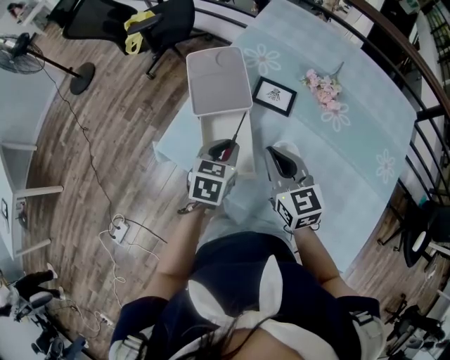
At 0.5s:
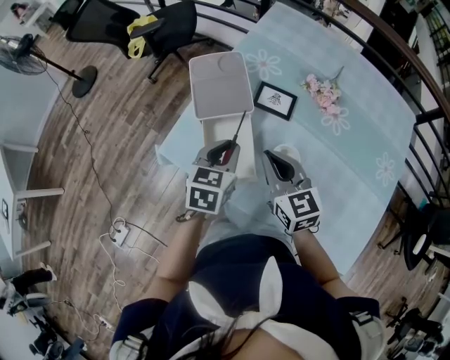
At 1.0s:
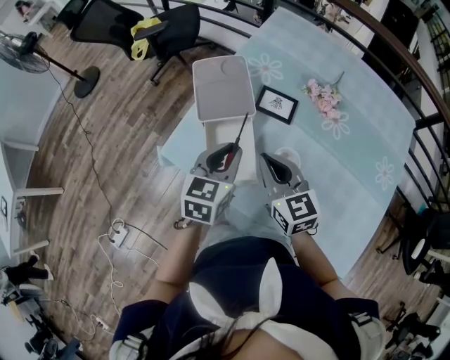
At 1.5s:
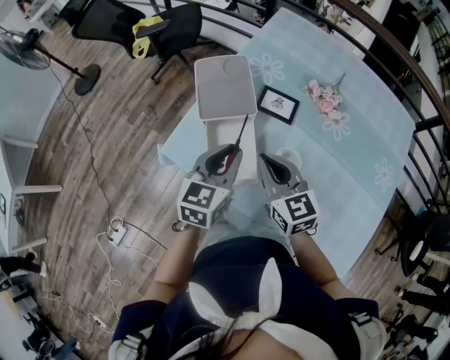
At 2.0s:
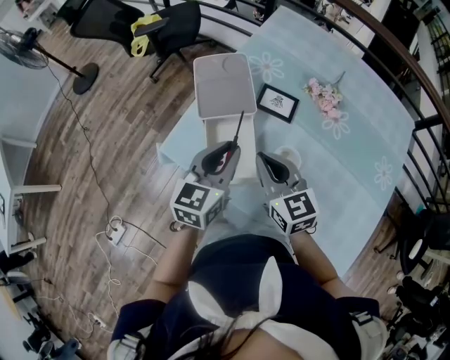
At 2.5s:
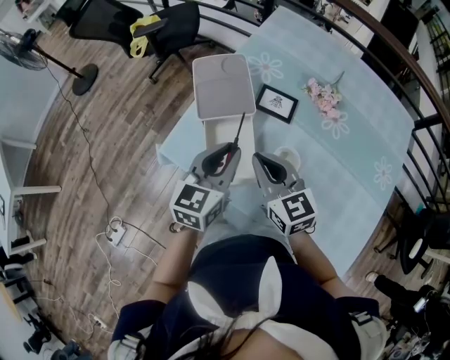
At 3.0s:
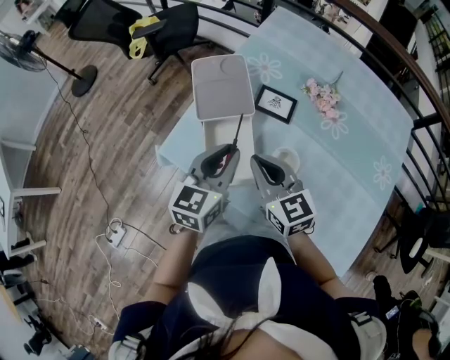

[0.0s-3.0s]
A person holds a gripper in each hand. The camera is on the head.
0.0s to 1.5s: The left gripper goes about 10 cm upward.
1.5s to 3.0s: The grippers stay close to where they were, moving slightly.

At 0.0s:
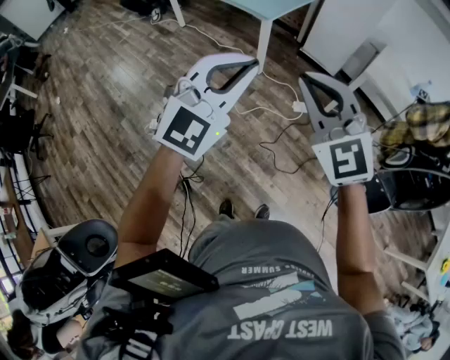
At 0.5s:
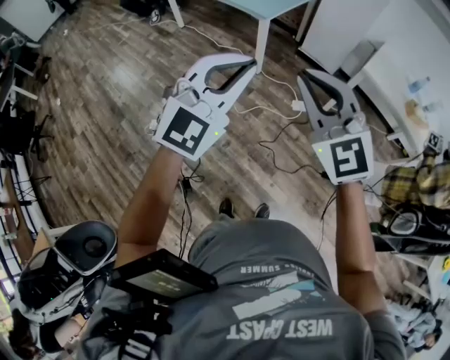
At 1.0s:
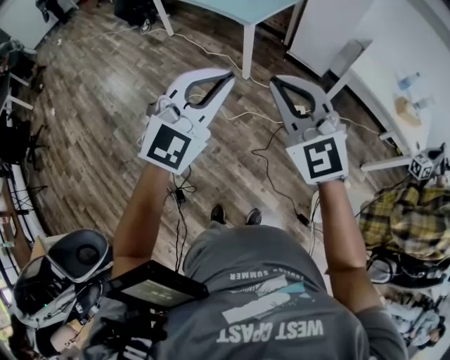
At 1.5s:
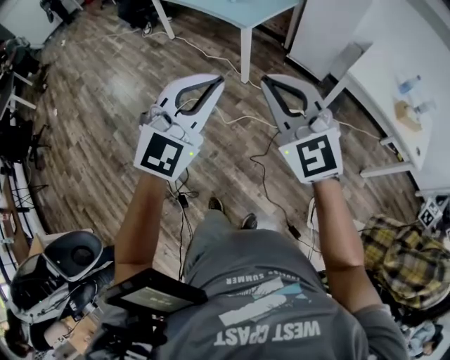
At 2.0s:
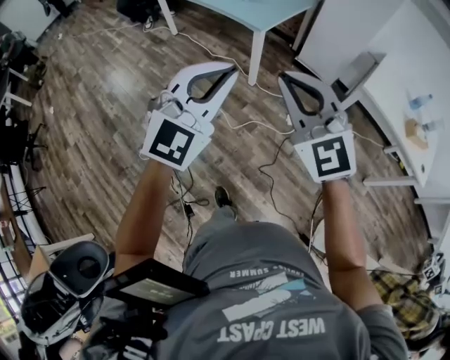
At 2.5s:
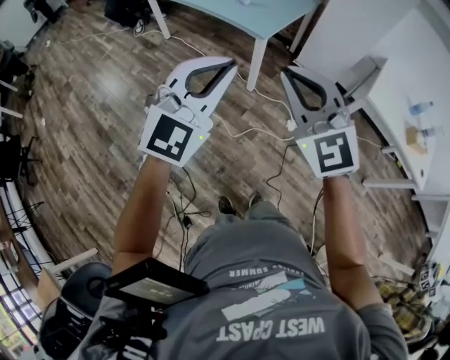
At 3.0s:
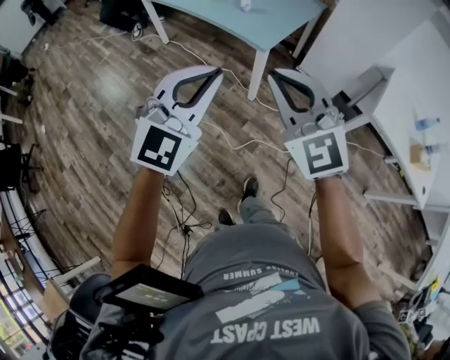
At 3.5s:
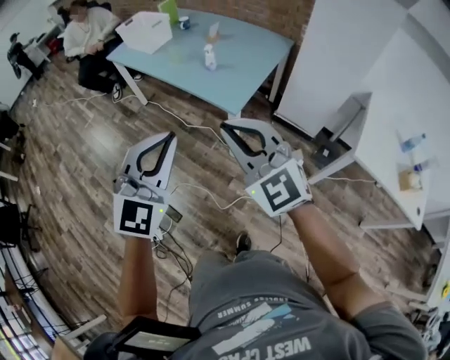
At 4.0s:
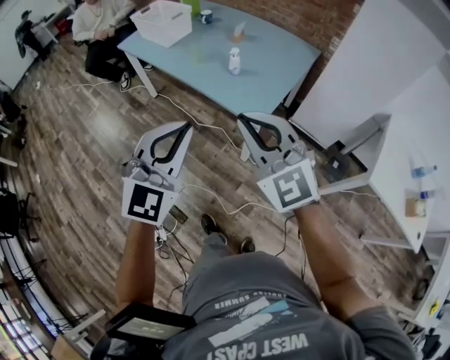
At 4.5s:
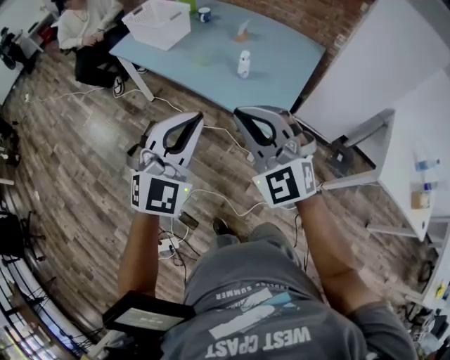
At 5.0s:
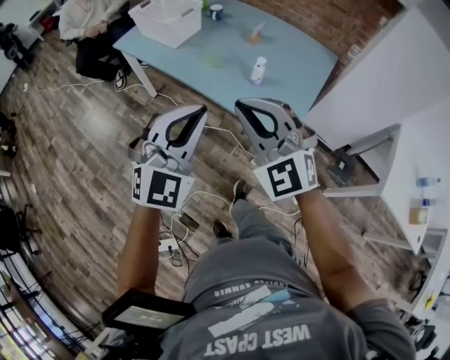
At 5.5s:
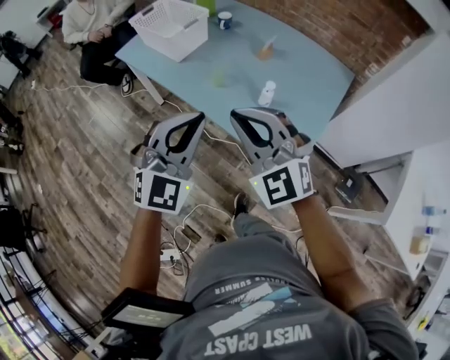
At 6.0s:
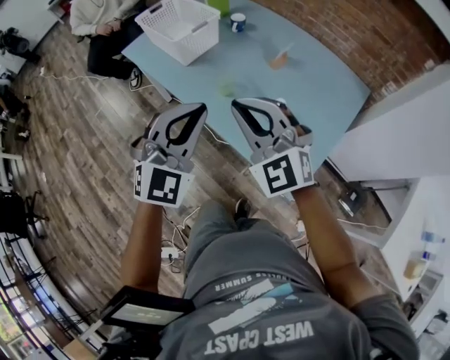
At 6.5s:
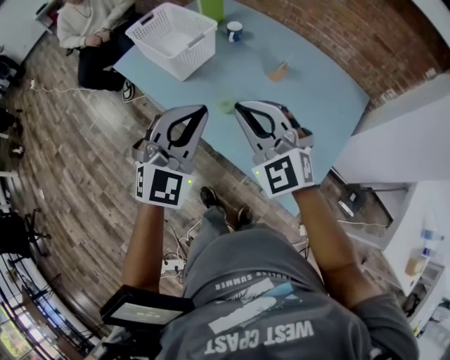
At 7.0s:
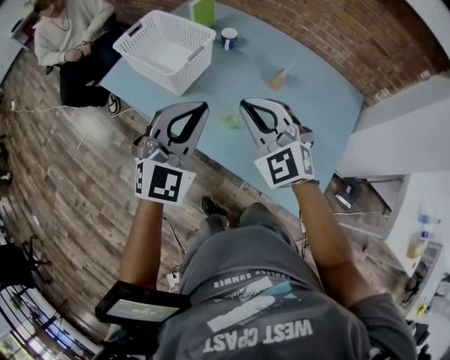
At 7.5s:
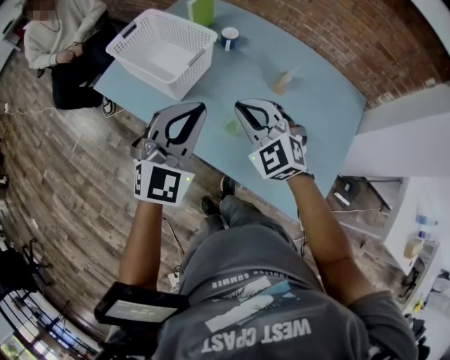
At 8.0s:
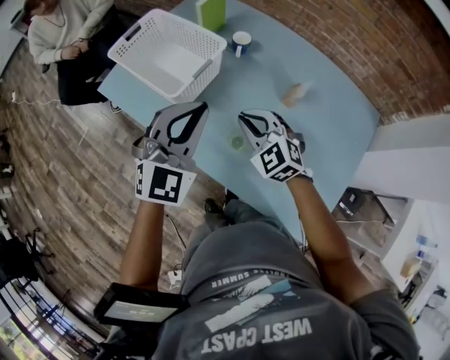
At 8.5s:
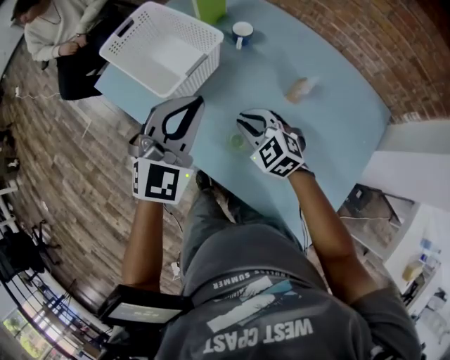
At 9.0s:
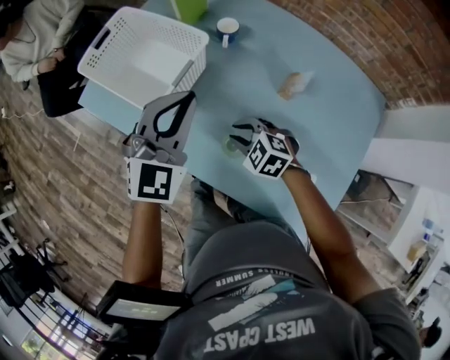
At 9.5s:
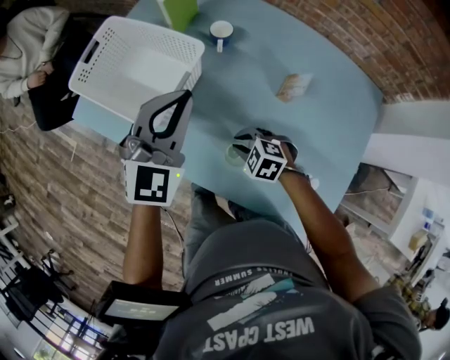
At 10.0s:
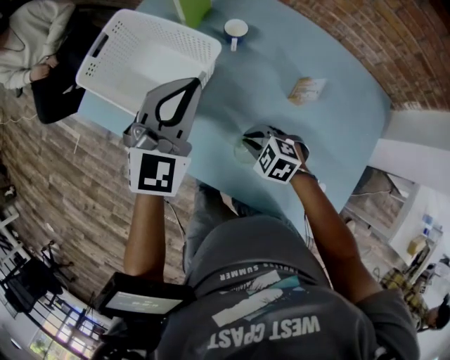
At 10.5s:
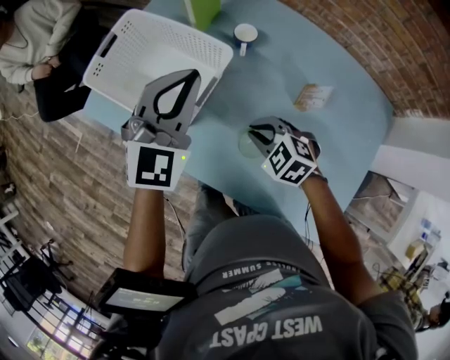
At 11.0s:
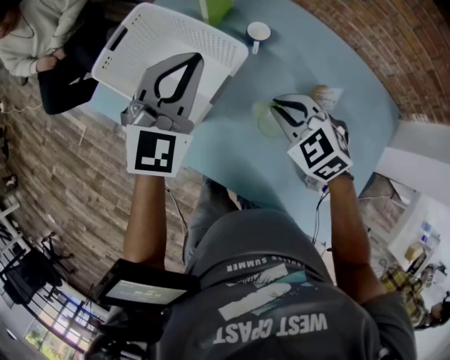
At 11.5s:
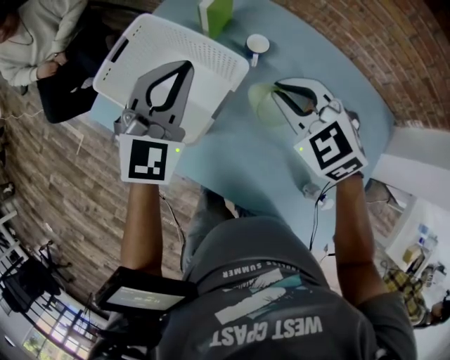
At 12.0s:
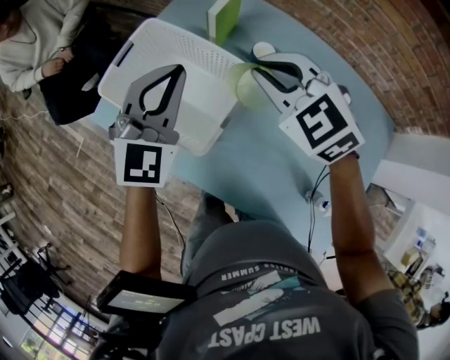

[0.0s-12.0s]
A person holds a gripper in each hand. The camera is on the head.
0.0s to 2.0s: Both grippers move forward, about 10 cm.
2.0s to 4.0s: Both grippers are carried forward, some 50 cm.
4.0s to 6.0s: Both grippers travel together forward, roughly 40 cm.
6.0s to 8.0s: The left gripper goes about 30 cm forward. Meanwhile the right gripper heads forward and downward, covering roughly 35 cm, and swivels approximately 30 degrees.
8.0s to 10.0s: The left gripper shifts approximately 15 cm forward. Meanwhile the right gripper shifts roughly 15 cm downward, and changes its angle by some 30 degrees.
10.0s to 12.0s: The left gripper heads forward and to the left, covering some 15 cm. The right gripper travels upward and forward by some 35 cm, and swivels approximately 30 degrees.

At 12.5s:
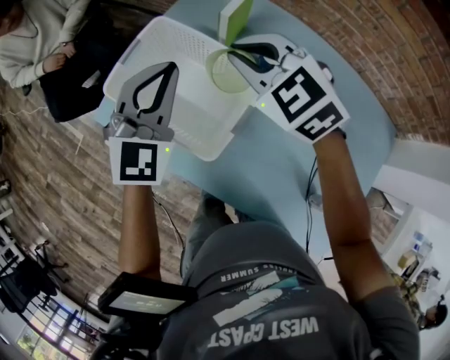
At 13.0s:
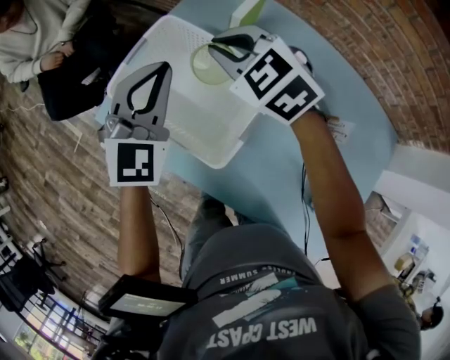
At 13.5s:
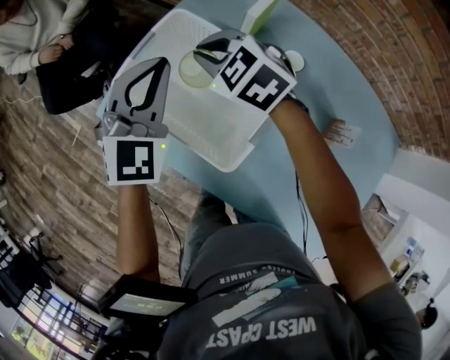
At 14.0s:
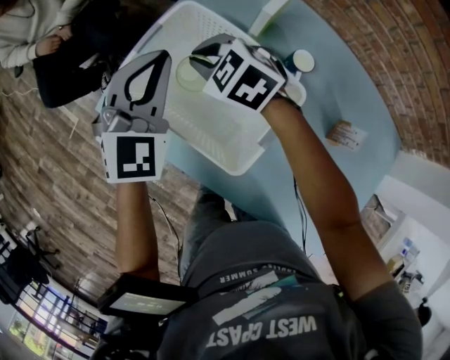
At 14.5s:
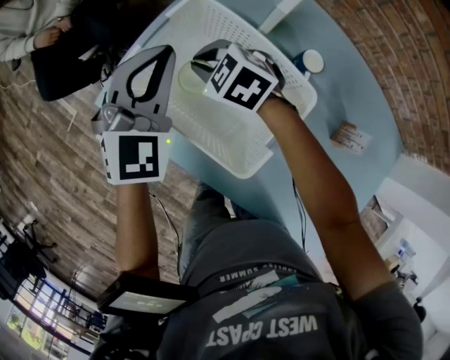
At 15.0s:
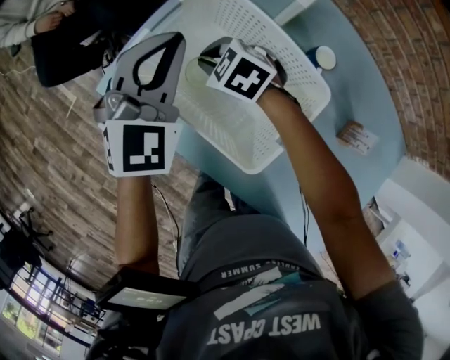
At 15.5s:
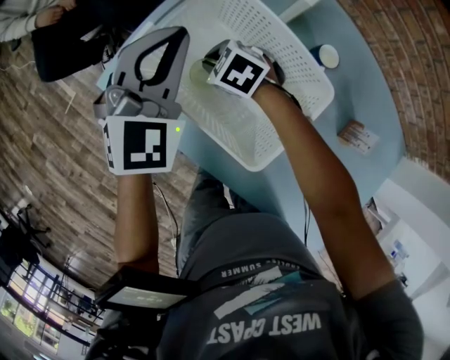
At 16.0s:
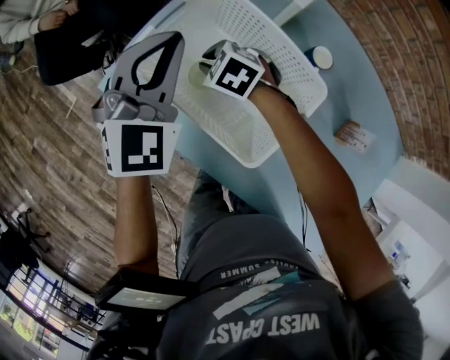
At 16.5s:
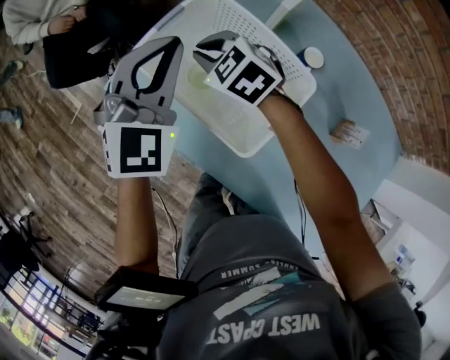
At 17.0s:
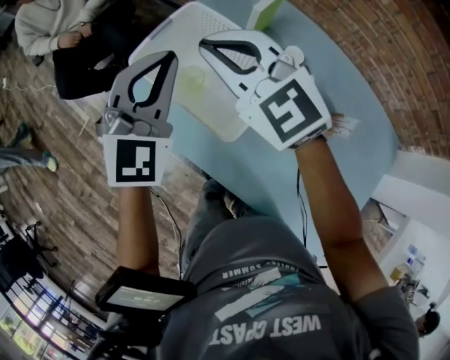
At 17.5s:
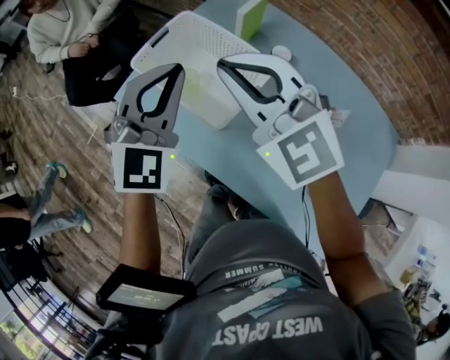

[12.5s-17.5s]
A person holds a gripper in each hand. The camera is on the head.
12.5s to 15.0s: The left gripper shifts some 15 cm forward, to the left and downward, while the right gripper is displaced downward and to the left by about 30 cm, and rotates approximately 30 degrees.
15.0s to 17.5s: The left gripper shifts some 20 cm backward and upward. The right gripper moves upward and backward, some 40 cm, and points its fingers some 40 degrees further upward.

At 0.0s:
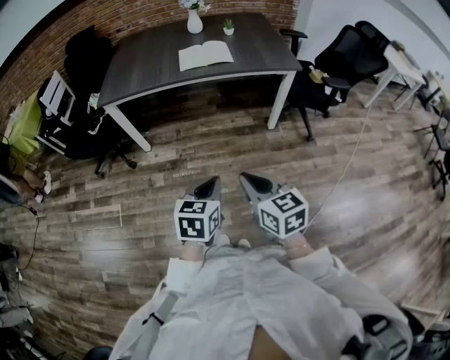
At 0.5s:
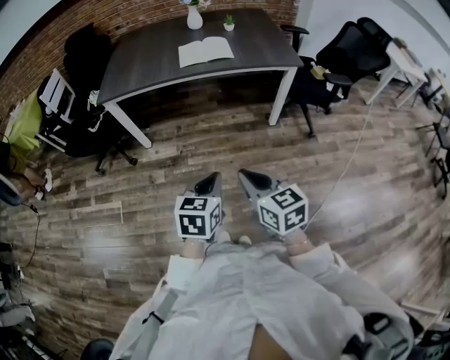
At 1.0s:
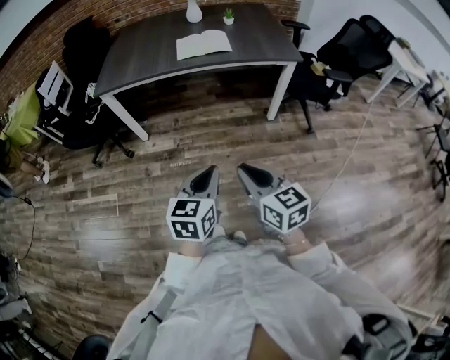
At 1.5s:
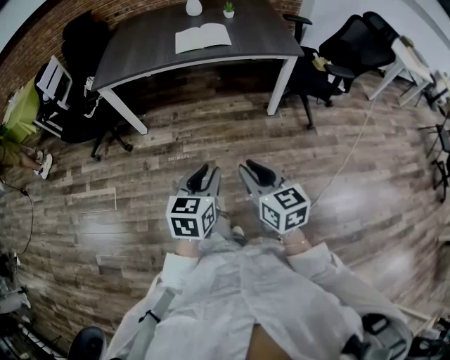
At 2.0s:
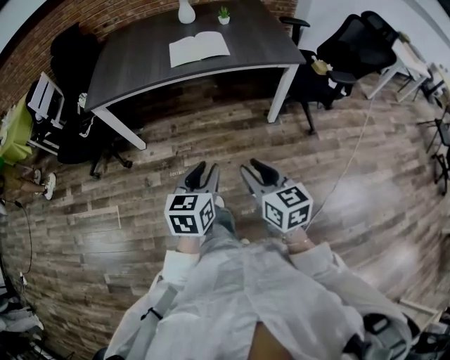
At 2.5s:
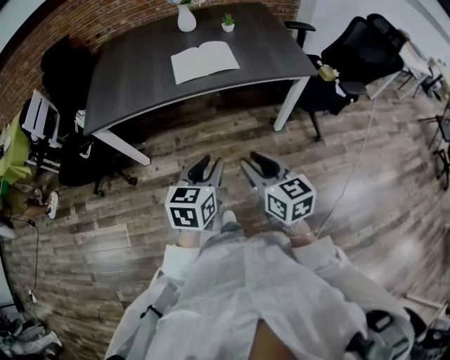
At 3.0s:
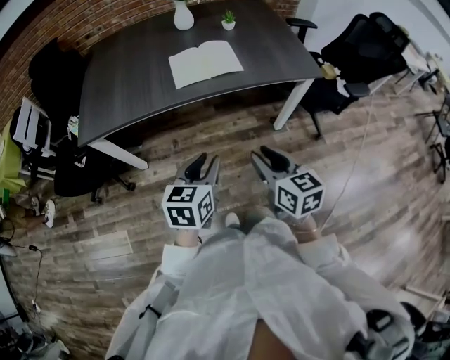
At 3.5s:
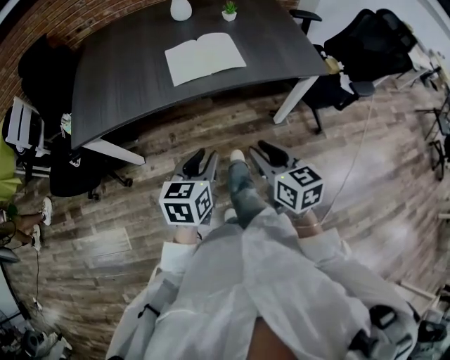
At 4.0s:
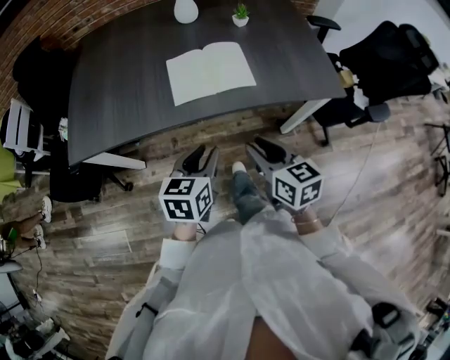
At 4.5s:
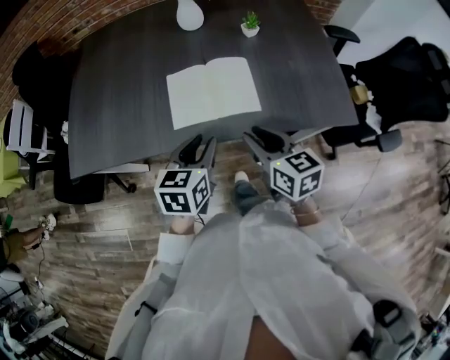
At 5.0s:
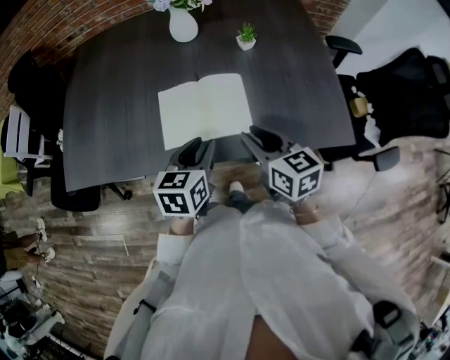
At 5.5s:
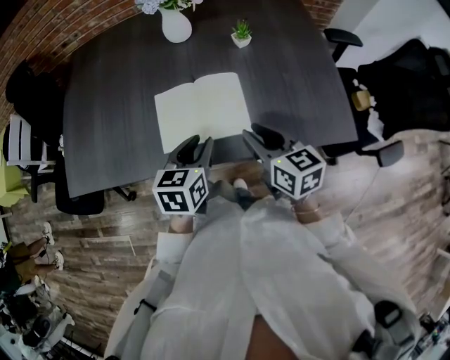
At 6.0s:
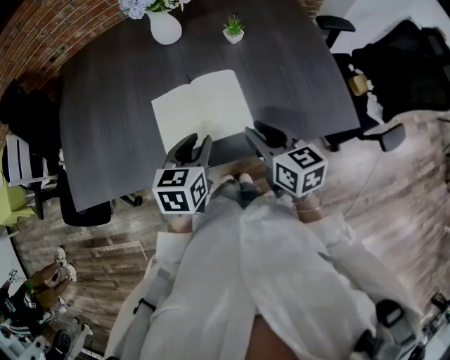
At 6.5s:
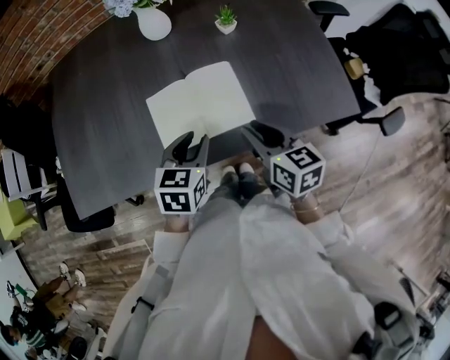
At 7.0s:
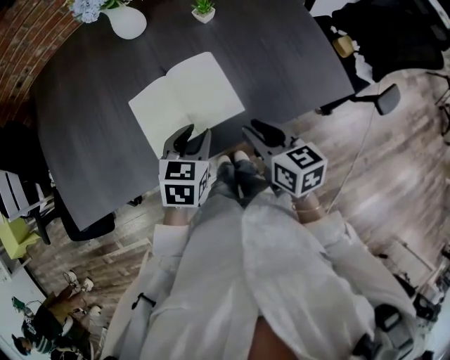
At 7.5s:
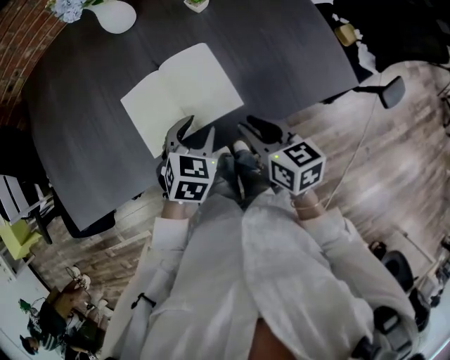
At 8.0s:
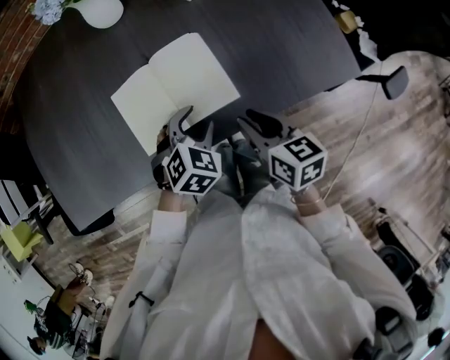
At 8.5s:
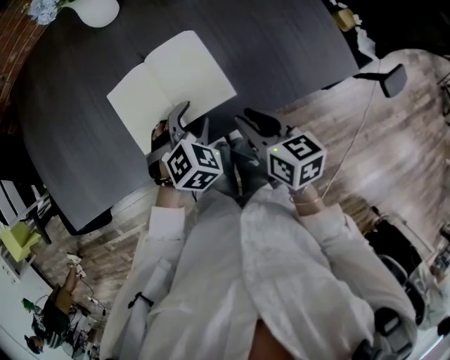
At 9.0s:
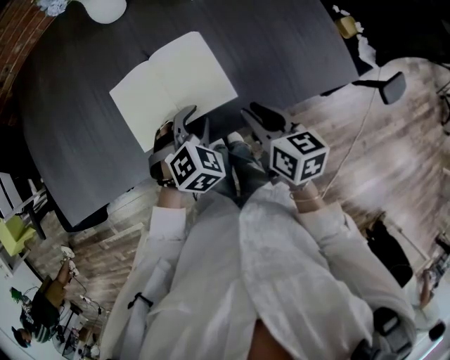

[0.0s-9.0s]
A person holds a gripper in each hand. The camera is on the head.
0.0s to 2.0s: Both grippers move forward, roughly 10 cm. The right gripper opens its fingers. The left gripper opens.
2.0s to 4.5s: The two grippers travel together, forward, about 50 cm.
4.5s to 7.0s: The right gripper shifts roughly 5 cm forward. The left gripper is displaced forward and downward by approximately 10 cm, and turns by approximately 30 degrees.
7.0s to 9.0s: The left gripper heads downward, covering roughly 5 cm, and swivels approximately 40 degrees.
